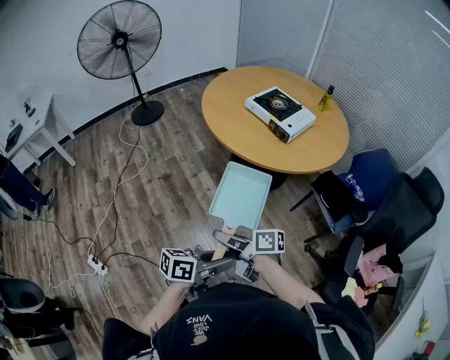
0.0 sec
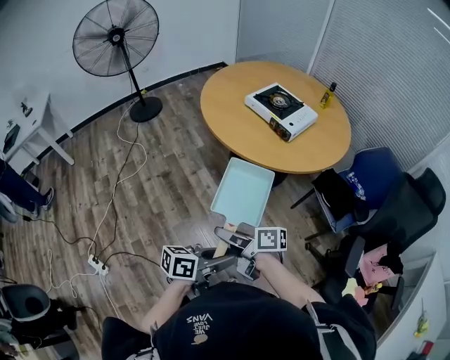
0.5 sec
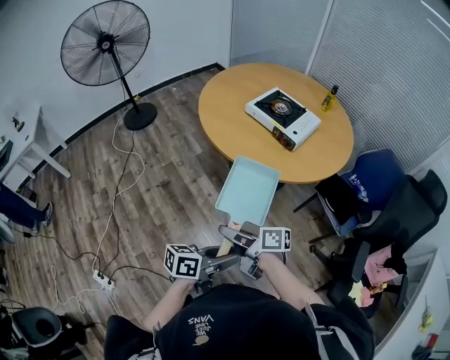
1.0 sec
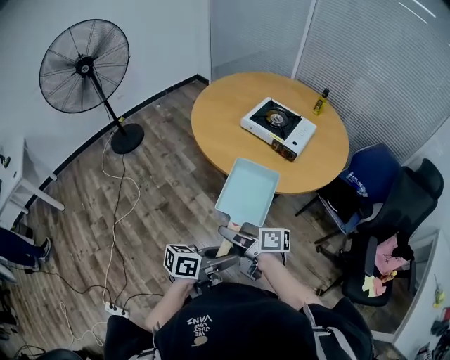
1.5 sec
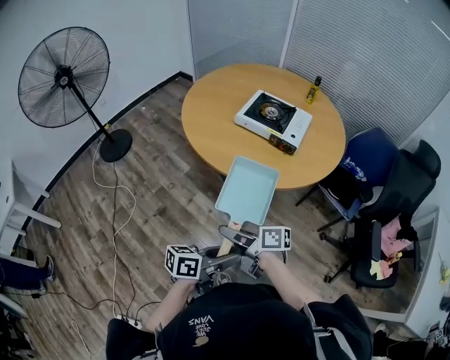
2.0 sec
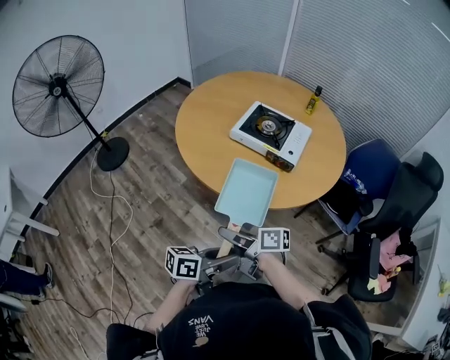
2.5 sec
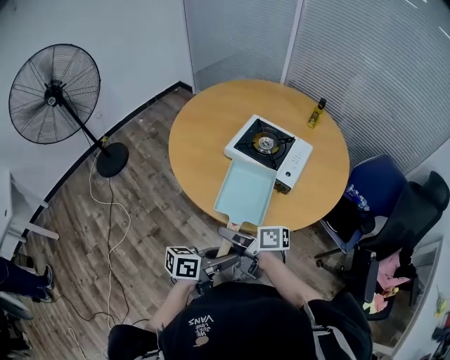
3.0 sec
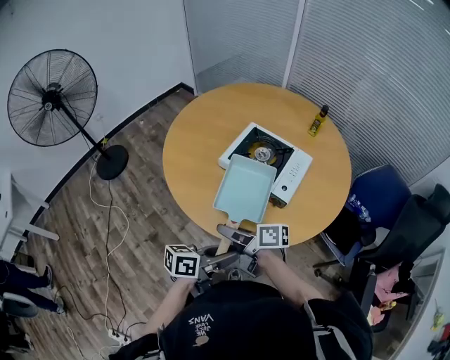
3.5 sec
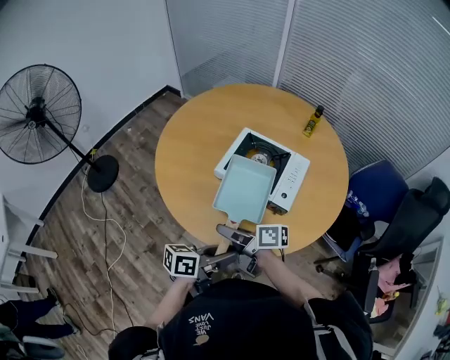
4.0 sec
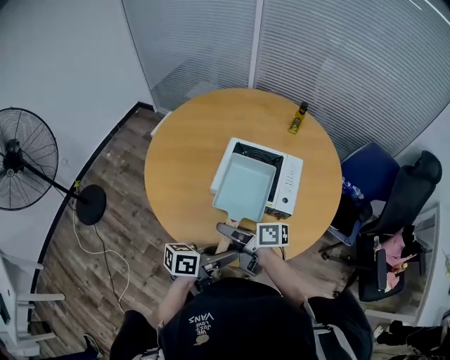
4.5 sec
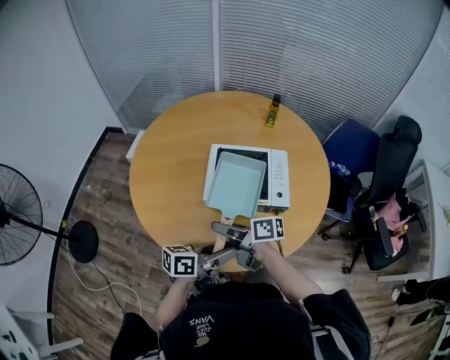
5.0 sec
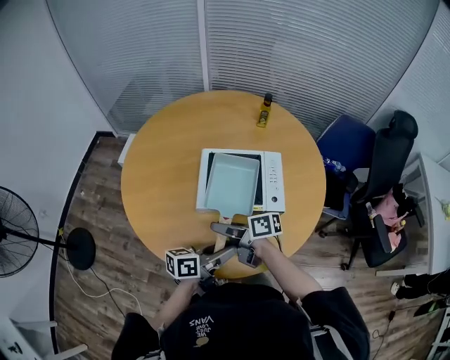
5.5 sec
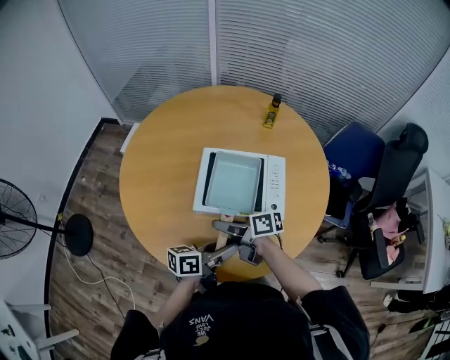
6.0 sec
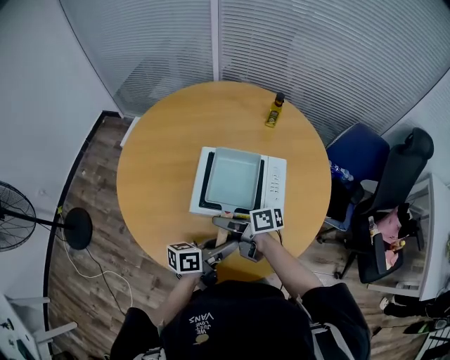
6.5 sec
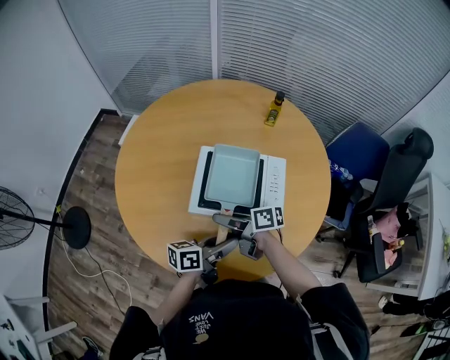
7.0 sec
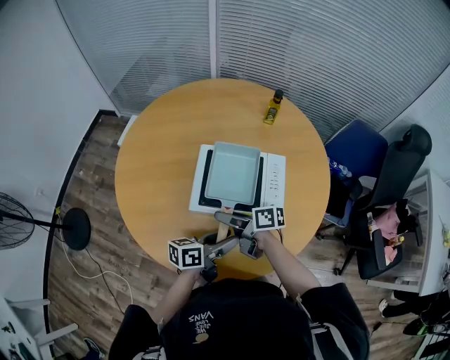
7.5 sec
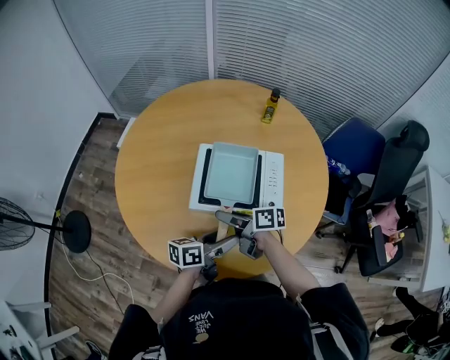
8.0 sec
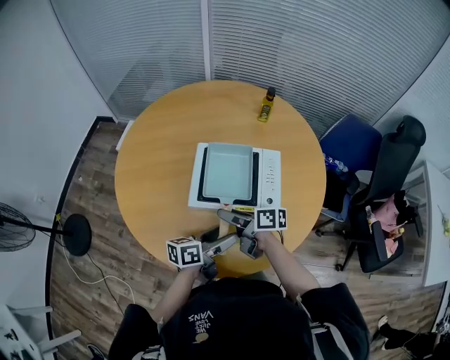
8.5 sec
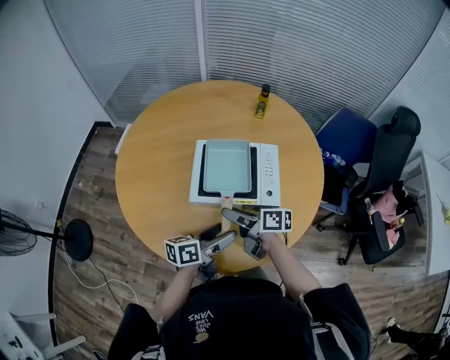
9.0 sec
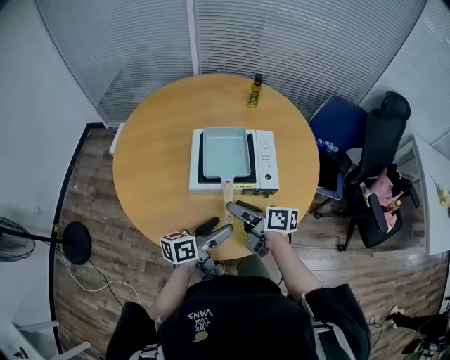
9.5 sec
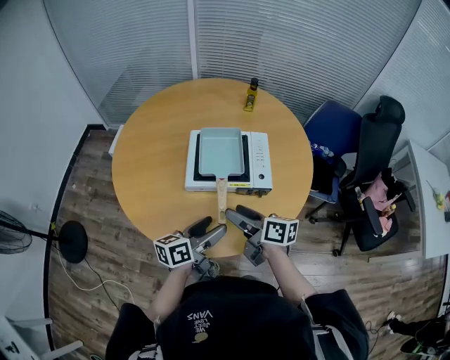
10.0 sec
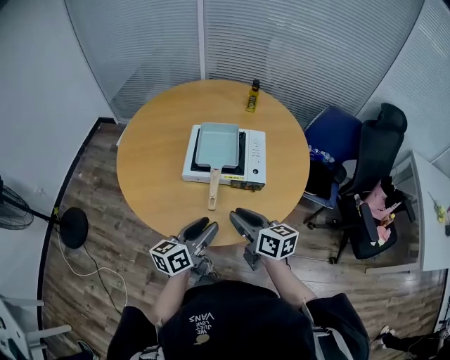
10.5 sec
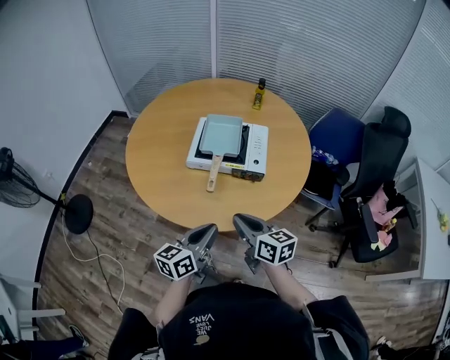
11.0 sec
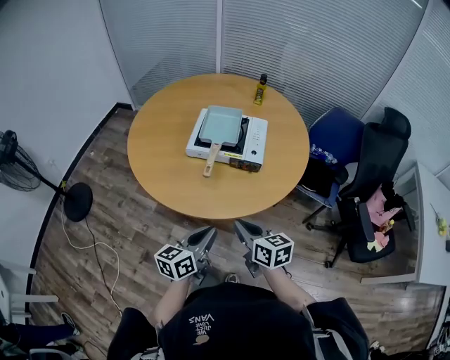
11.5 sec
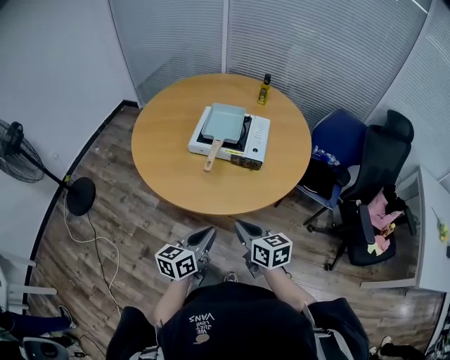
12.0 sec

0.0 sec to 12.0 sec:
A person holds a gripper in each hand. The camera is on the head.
0.0 sec to 2.0 sec: The right gripper shifts by about 25 cm. The left gripper ends up roughly 25 cm from where it was.
2.0 sec to 4.0 sec: The left gripper moves about 30 cm; the right gripper ends up roughly 30 cm from where it was.
4.0 sec to 6.0 sec: The right gripper moves some 15 cm; the left gripper shifts by roughly 15 cm.
6.0 sec to 8.0 sec: The left gripper opens its fingers.
8.0 sec to 10.0 sec: The left gripper goes some 5 cm backward. The right gripper goes approximately 10 cm backward and upward, and rotates approximately 20 degrees.
10.0 sec to 12.0 sec: Both grippers move backward, roughly 20 cm. The right gripper changes its angle by about 30 degrees, and closes its fingers. The left gripper rotates roughly 20 degrees, and closes up.

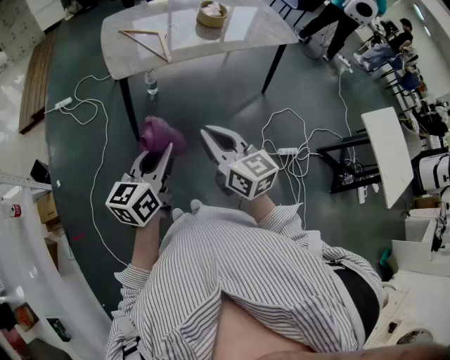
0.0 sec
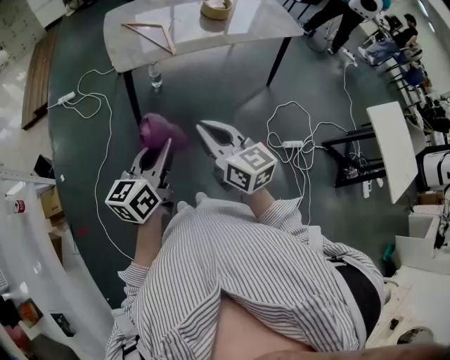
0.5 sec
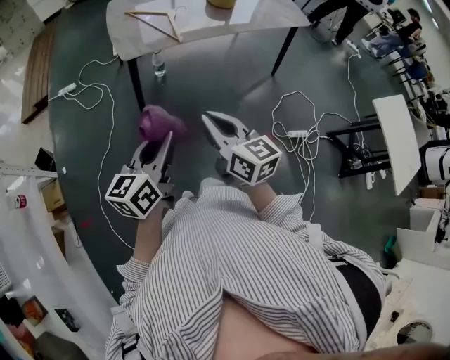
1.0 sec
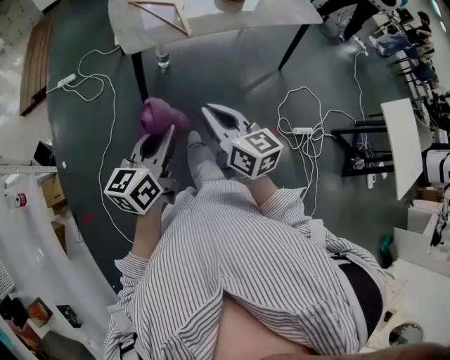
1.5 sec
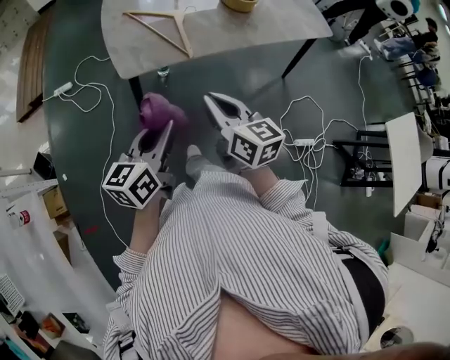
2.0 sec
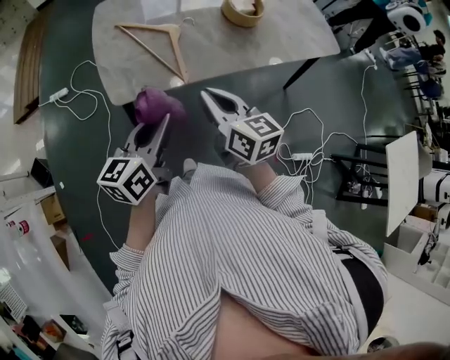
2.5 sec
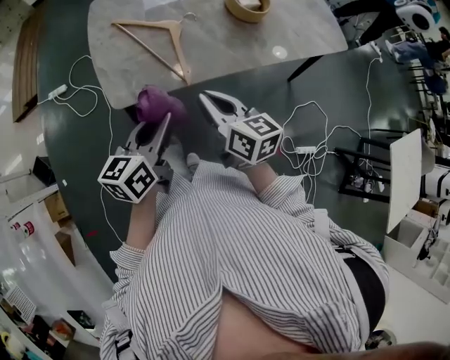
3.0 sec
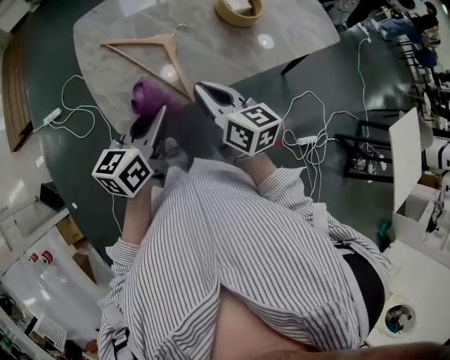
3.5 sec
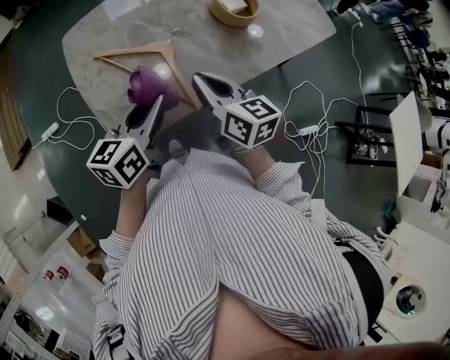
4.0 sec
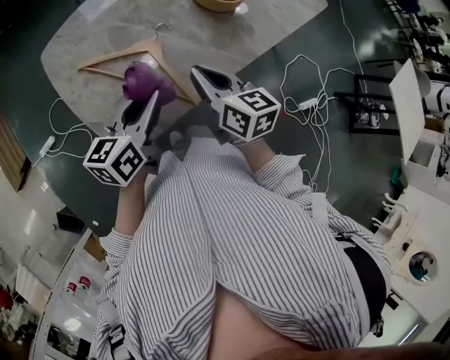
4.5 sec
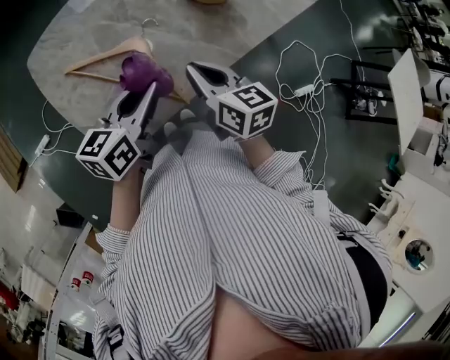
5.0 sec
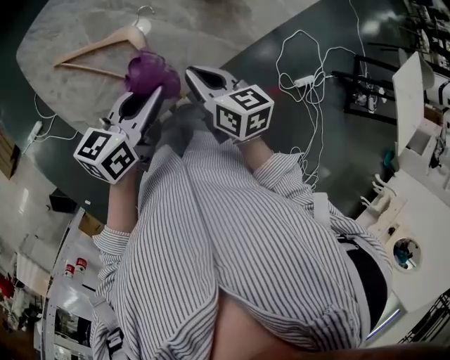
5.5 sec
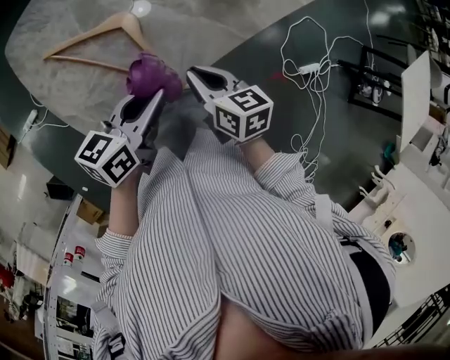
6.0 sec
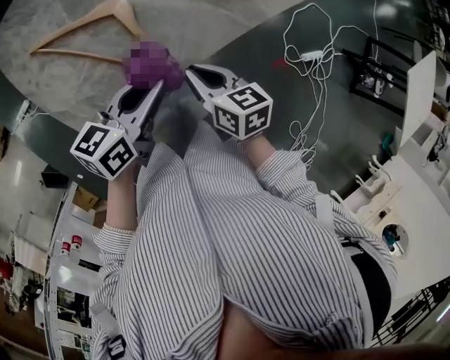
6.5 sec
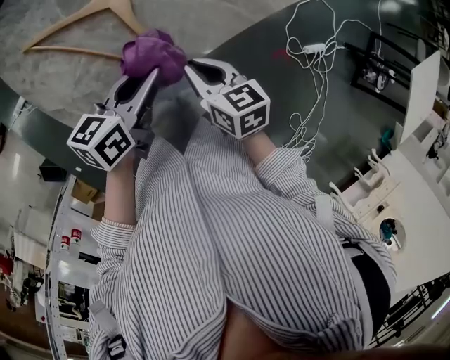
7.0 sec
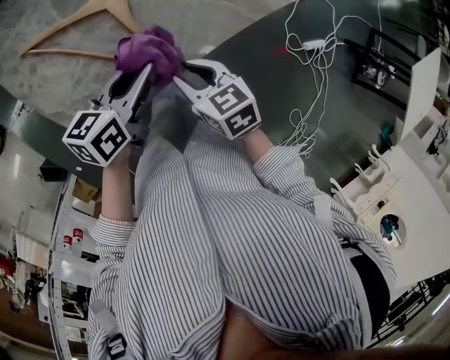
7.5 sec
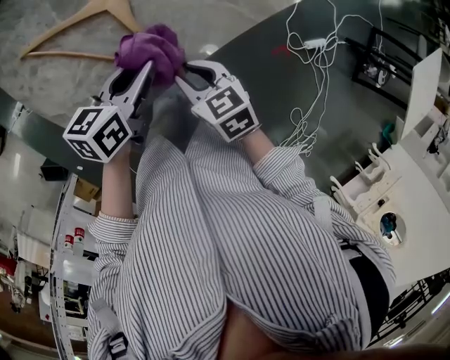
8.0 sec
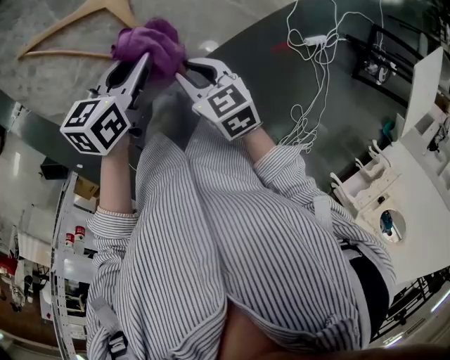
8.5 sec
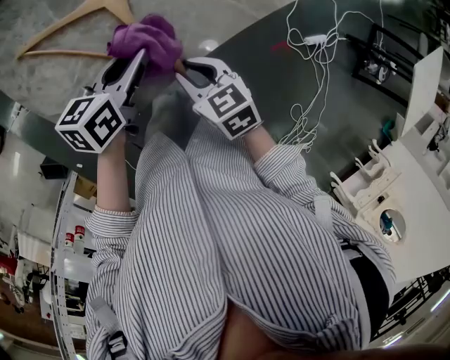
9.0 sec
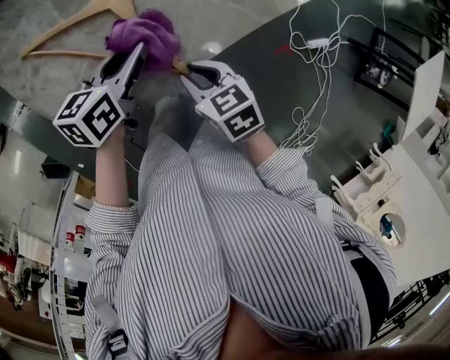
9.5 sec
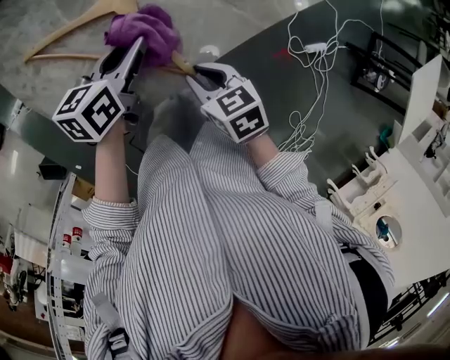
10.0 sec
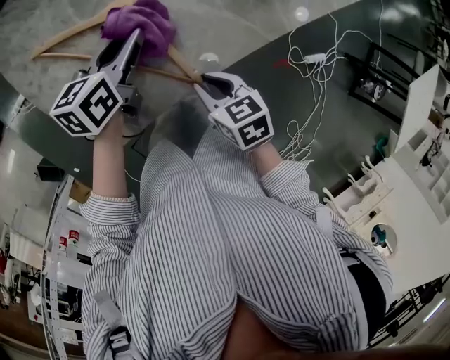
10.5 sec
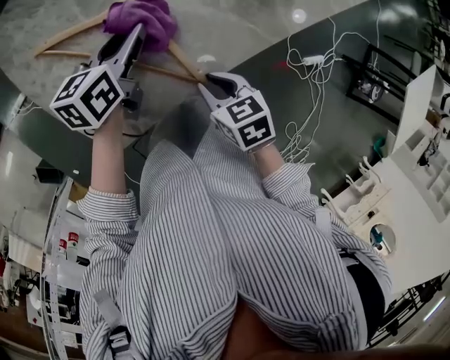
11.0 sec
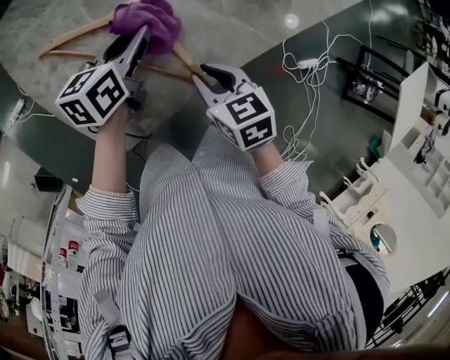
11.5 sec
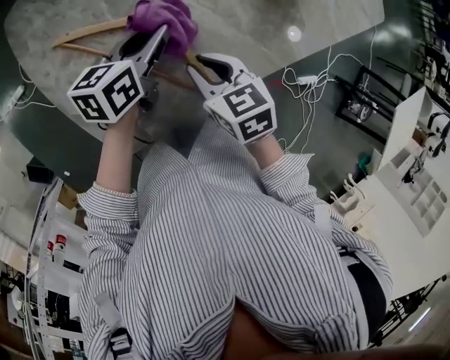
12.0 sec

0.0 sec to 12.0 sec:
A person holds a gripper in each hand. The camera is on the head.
0.0 sec to 2.0 sec: The two grippers go some 20 cm forward.
2.0 sec to 4.0 sec: The two grippers go roughly 30 cm forward.
4.0 sec to 6.0 sec: The left gripper travels downward and to the right by about 10 cm, and rotates about 20 degrees; the right gripper heads downward, covering approximately 15 cm, and changes its angle by approximately 20 degrees.
6.0 sec to 8.0 sec: Both grippers move downward, approximately 10 cm. The right gripper turns by roughly 20 degrees.
8.0 sec to 10.0 sec: The left gripper is displaced forward by some 5 cm.
10.0 sec to 12.0 sec: The right gripper goes some 10 cm forward and to the left. The left gripper goes approximately 10 cm forward.

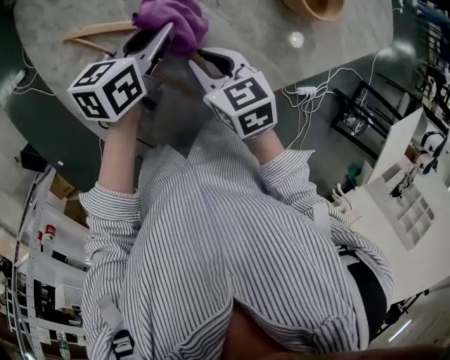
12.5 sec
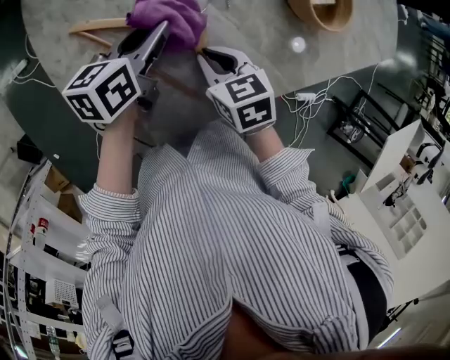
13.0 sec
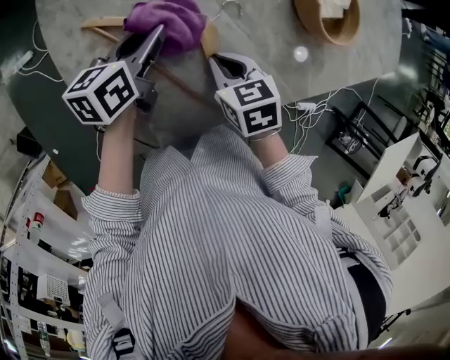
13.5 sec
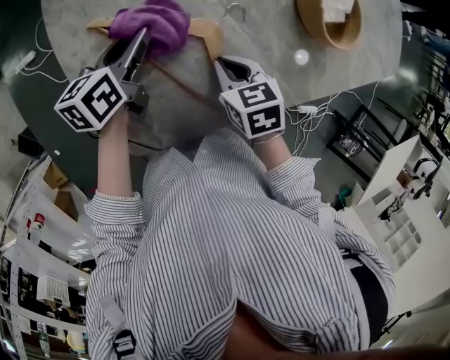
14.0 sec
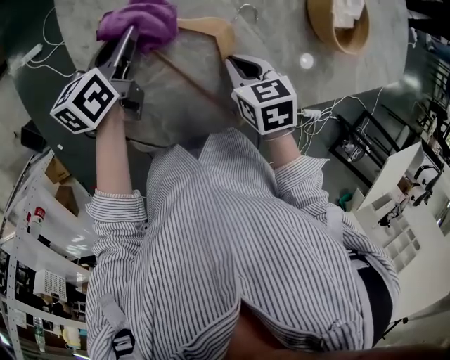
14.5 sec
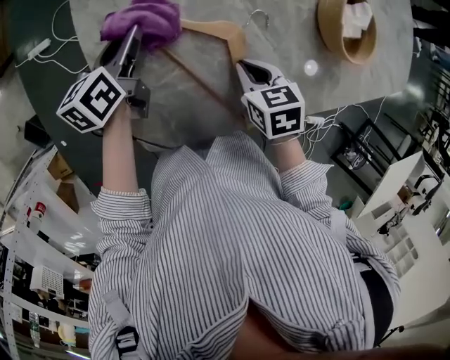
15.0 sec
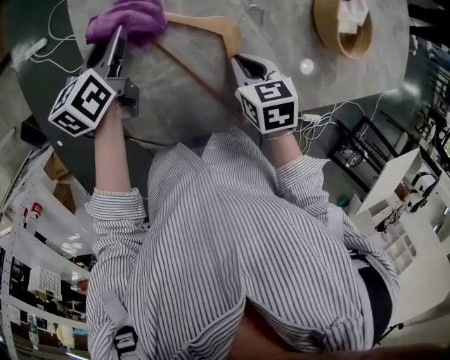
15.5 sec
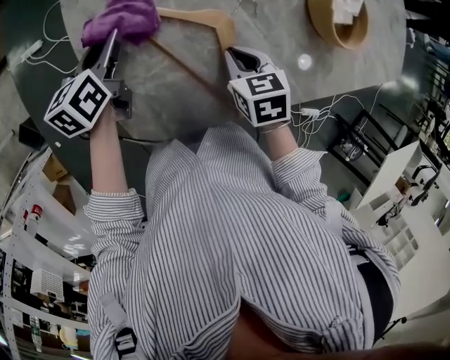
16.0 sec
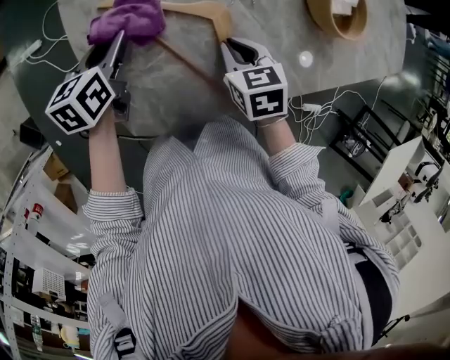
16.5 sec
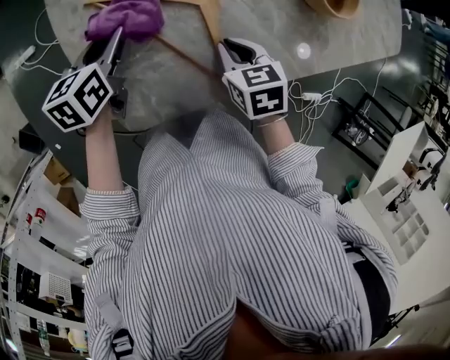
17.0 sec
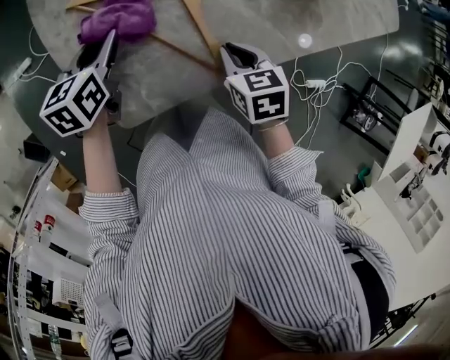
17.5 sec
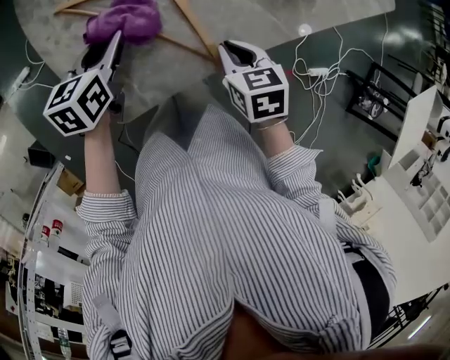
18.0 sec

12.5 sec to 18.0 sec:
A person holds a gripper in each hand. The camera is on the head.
12.5 sec to 14.5 sec: The left gripper shifts about 15 cm to the left, and swivels some 20 degrees.
14.5 sec to 16.0 sec: The grippers stay close to where they were, moving slightly.
16.0 sec to 18.0 sec: The right gripper travels backward and to the right by roughly 15 cm. Meanwhile the left gripper heads to the right and backward, covering about 15 cm, and changes its angle by about 30 degrees.
